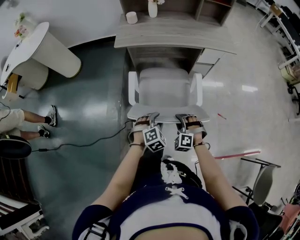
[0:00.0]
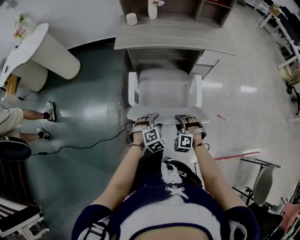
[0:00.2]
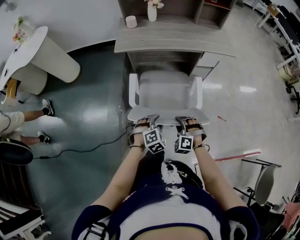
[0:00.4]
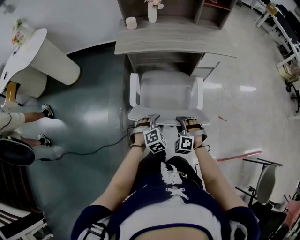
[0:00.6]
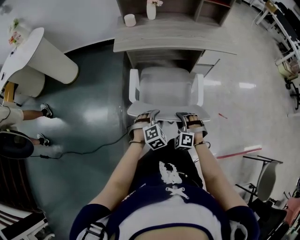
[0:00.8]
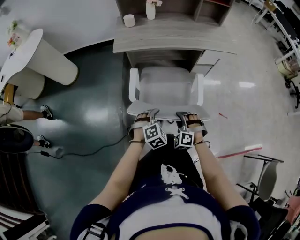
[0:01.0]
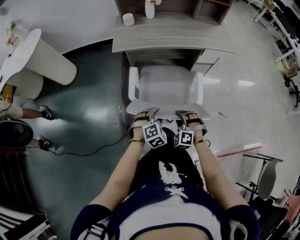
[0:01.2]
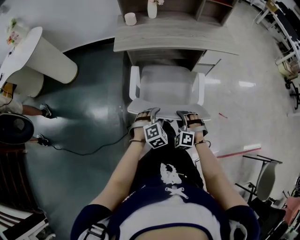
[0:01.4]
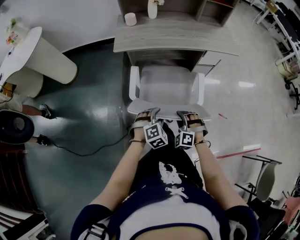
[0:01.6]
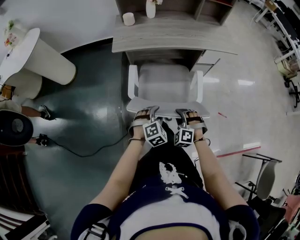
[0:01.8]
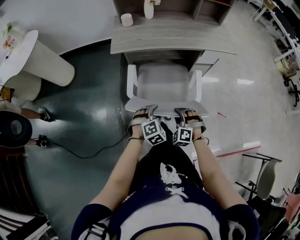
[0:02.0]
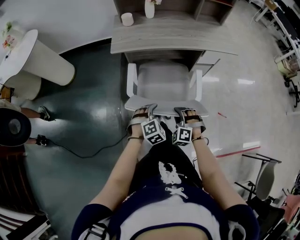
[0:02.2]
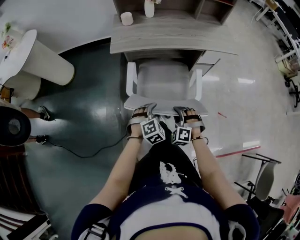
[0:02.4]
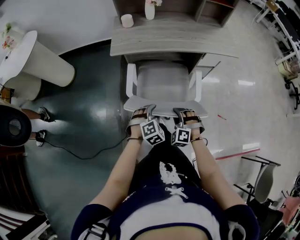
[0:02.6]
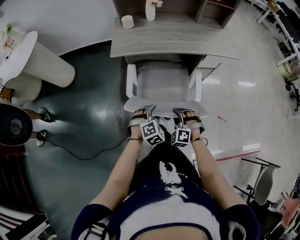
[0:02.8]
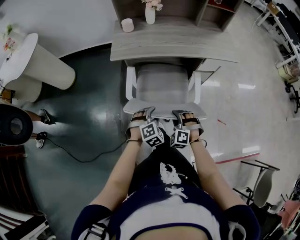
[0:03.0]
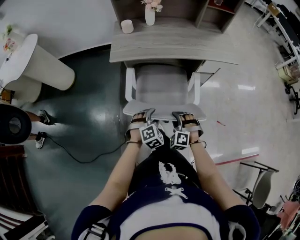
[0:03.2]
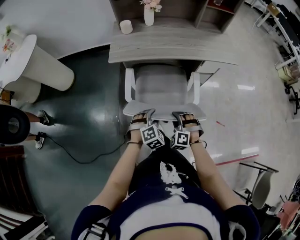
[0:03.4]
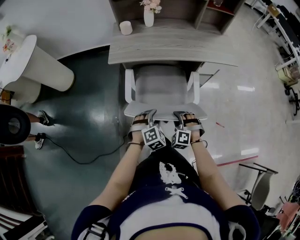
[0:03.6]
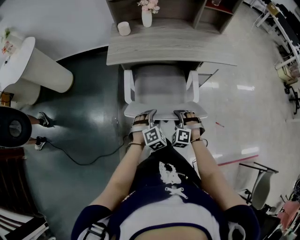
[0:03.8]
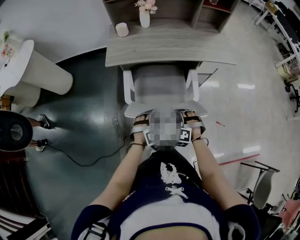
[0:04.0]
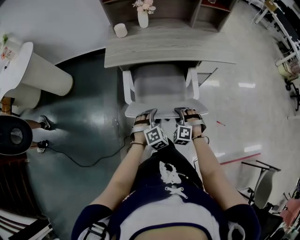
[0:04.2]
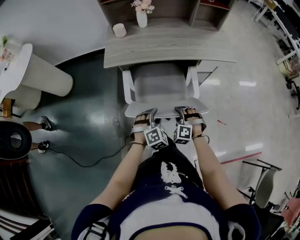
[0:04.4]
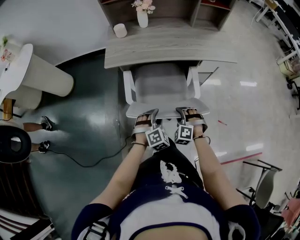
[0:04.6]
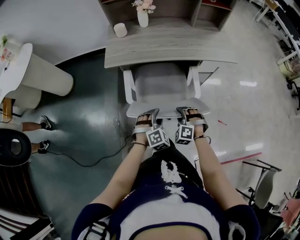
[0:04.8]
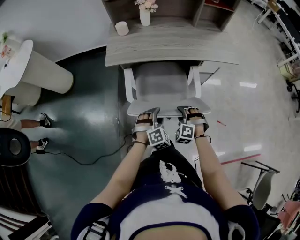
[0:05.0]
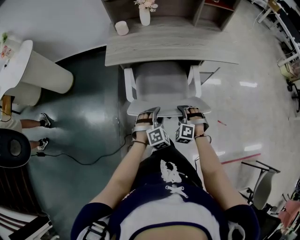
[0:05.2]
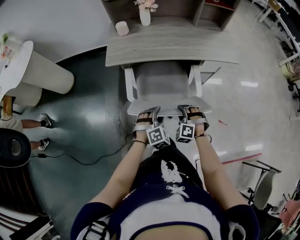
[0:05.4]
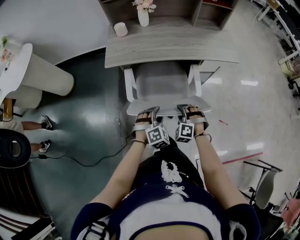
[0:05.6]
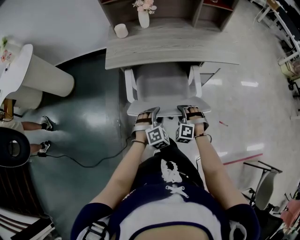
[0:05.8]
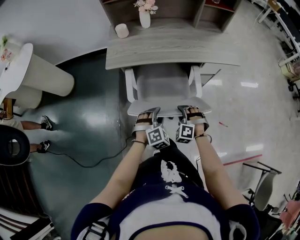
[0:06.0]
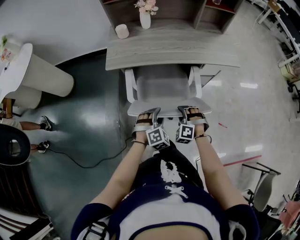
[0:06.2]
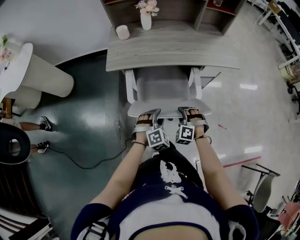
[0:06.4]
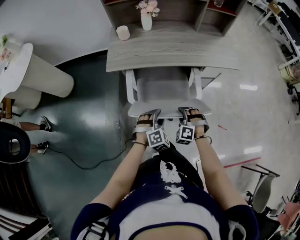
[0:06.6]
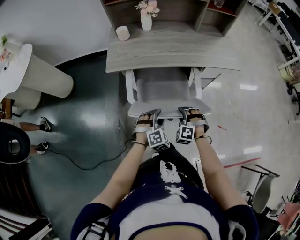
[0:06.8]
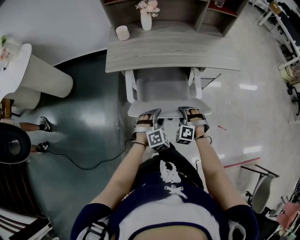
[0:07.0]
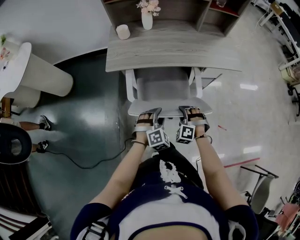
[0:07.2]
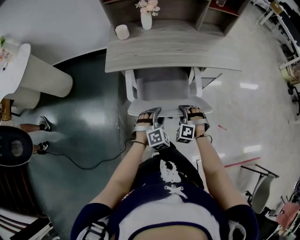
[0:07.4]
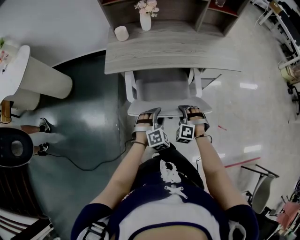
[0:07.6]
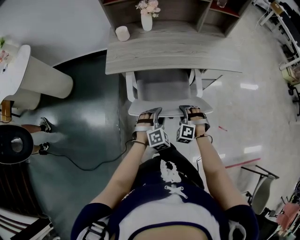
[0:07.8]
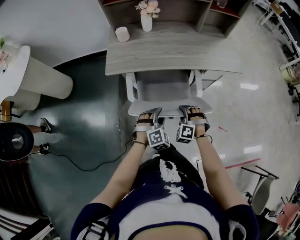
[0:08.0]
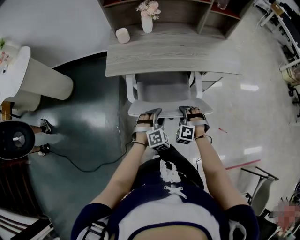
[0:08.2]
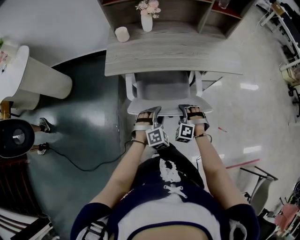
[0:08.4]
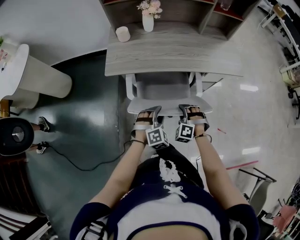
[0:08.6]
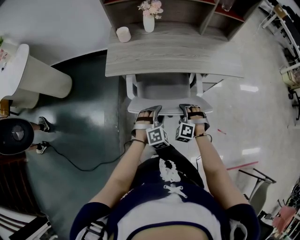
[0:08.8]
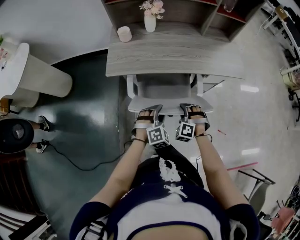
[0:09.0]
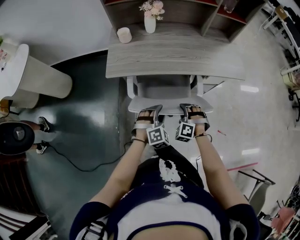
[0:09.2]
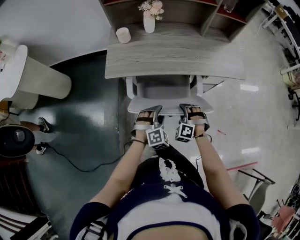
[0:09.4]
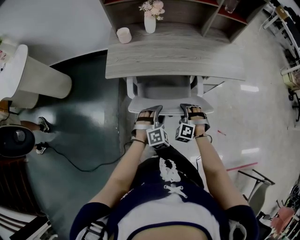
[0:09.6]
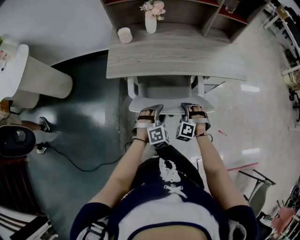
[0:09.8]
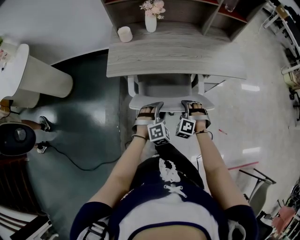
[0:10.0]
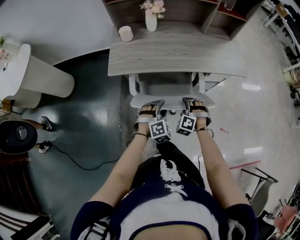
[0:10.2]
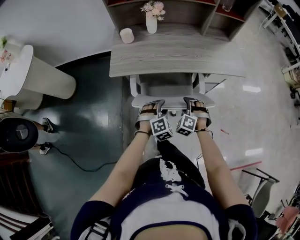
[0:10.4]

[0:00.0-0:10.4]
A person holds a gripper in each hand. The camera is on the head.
0:00.0 to 0:01.4: The grippers both shift forward by about 5 cm.
0:01.4 to 0:03.0: The grippers both shift forward by about 10 cm.
0:03.0 to 0:04.4: The left gripper ends up about 5 cm from where it was. Meanwhile the right gripper is displaced forward by approximately 5 cm.
0:04.4 to 0:06.0: There are only small adjustments of the grippers.
0:06.0 to 0:07.4: The grippers stay close to where they were, moving slightly.
0:07.4 to 0:09.0: Both grippers travel together forward, some 5 cm.
0:09.0 to 0:10.4: The grippers make only small movements.

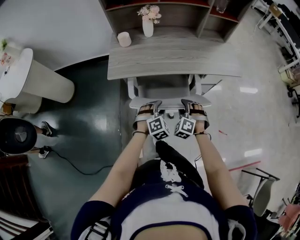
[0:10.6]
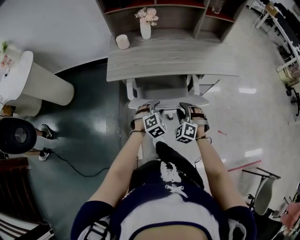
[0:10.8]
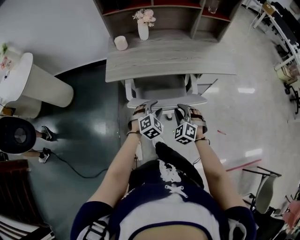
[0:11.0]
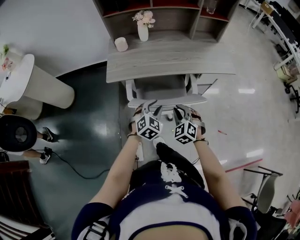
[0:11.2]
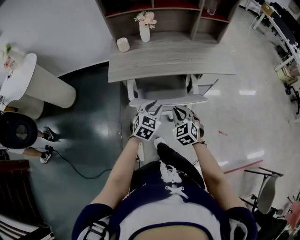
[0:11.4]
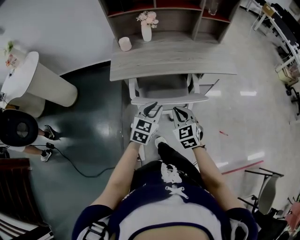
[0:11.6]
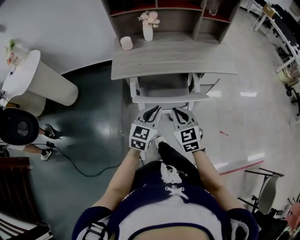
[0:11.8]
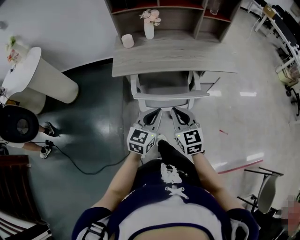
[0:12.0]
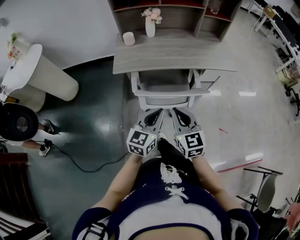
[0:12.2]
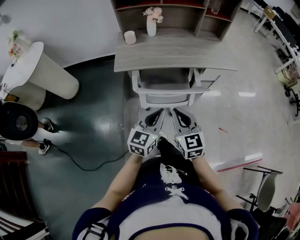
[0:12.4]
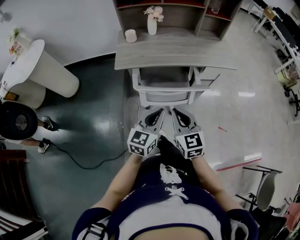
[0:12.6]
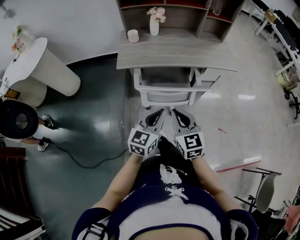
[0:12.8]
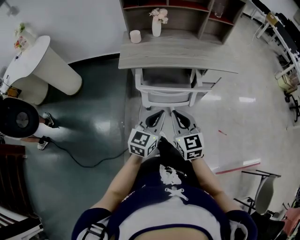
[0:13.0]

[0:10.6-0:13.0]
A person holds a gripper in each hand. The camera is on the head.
0:10.6 to 0:11.8: The grippers both shift upward and backward by roughly 15 cm. The right gripper rotates around the line of its fingers by approximately 50 degrees, clockwise from behind, and closes up; the left gripper rolls counterclockwise, seen from behind, by some 50 degrees, and closes.
0:11.8 to 0:13.0: The two grippers go roughly 10 cm backward.

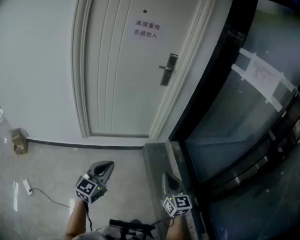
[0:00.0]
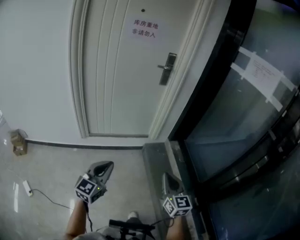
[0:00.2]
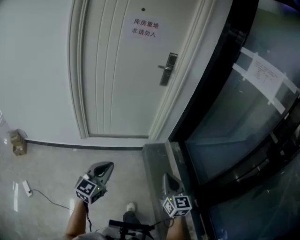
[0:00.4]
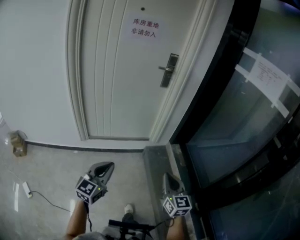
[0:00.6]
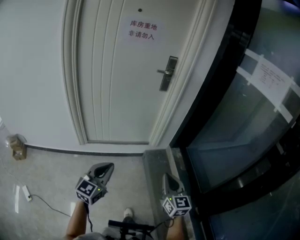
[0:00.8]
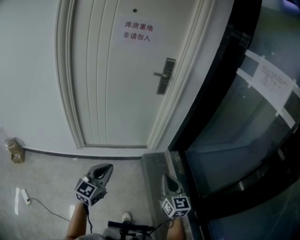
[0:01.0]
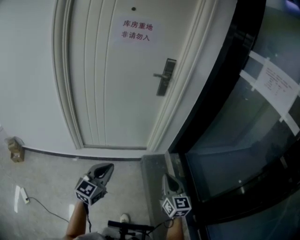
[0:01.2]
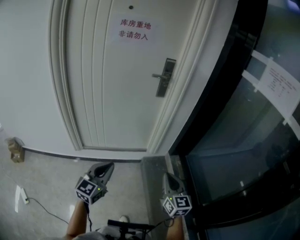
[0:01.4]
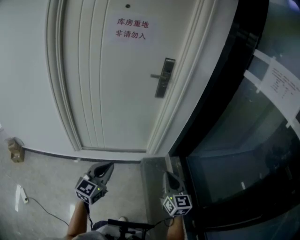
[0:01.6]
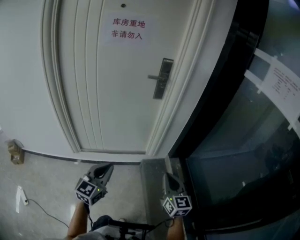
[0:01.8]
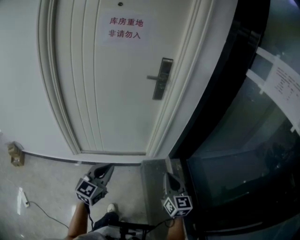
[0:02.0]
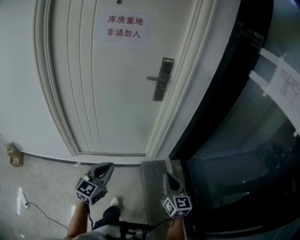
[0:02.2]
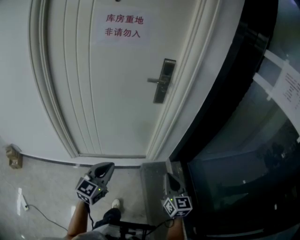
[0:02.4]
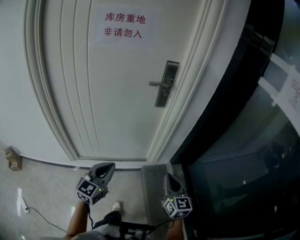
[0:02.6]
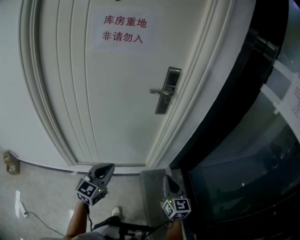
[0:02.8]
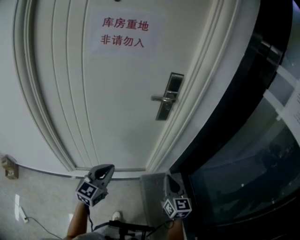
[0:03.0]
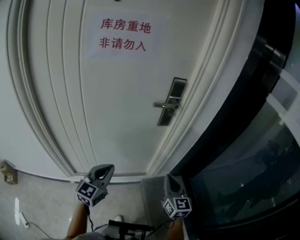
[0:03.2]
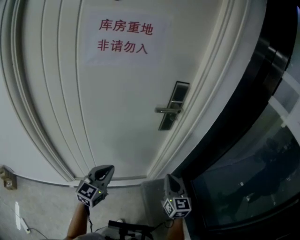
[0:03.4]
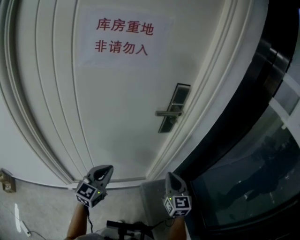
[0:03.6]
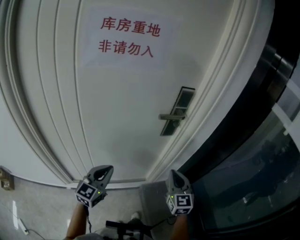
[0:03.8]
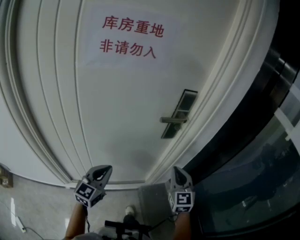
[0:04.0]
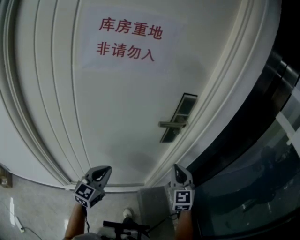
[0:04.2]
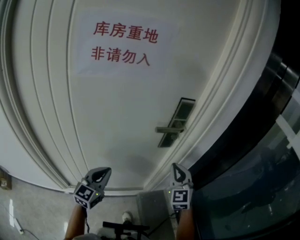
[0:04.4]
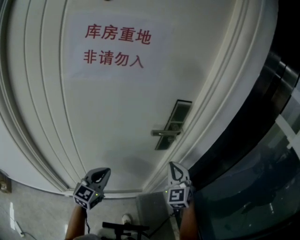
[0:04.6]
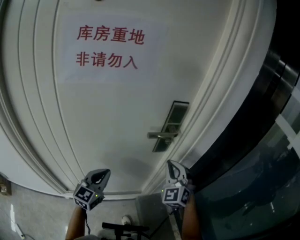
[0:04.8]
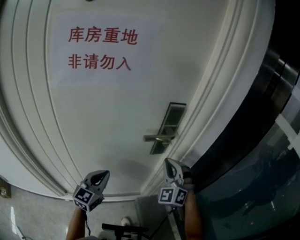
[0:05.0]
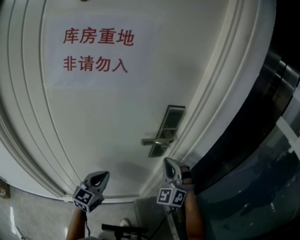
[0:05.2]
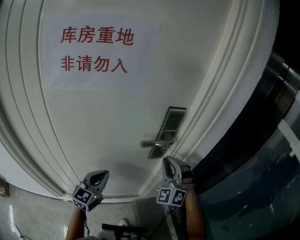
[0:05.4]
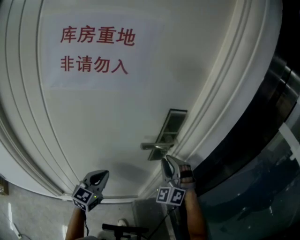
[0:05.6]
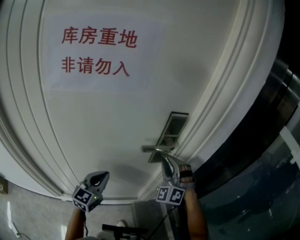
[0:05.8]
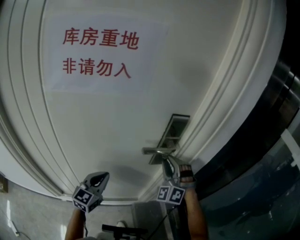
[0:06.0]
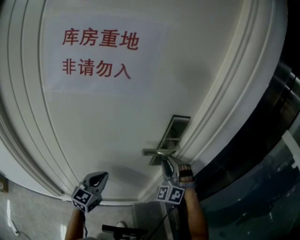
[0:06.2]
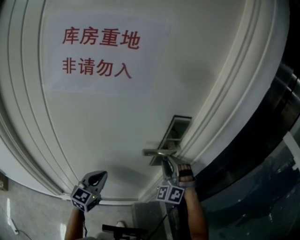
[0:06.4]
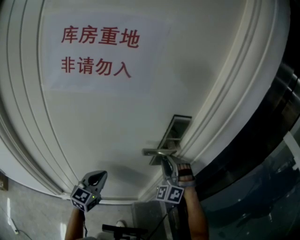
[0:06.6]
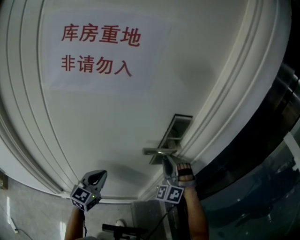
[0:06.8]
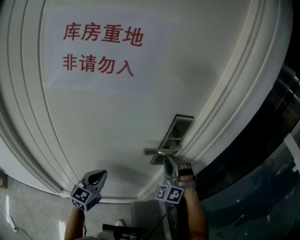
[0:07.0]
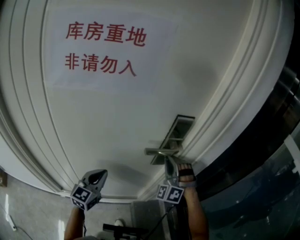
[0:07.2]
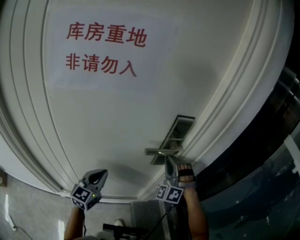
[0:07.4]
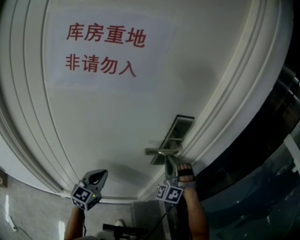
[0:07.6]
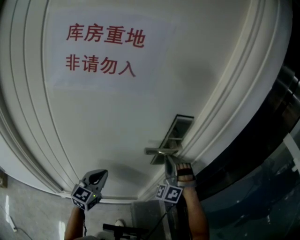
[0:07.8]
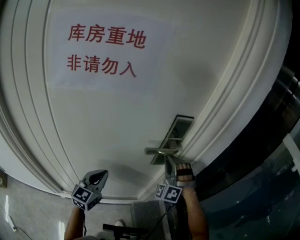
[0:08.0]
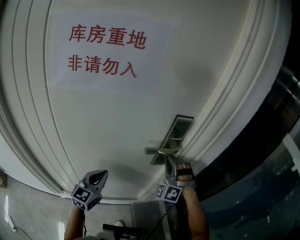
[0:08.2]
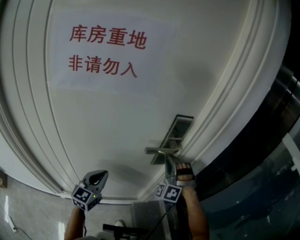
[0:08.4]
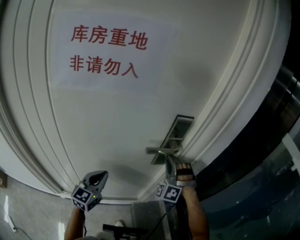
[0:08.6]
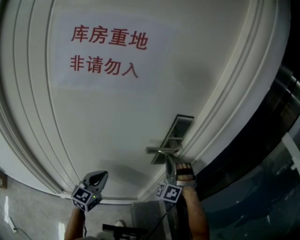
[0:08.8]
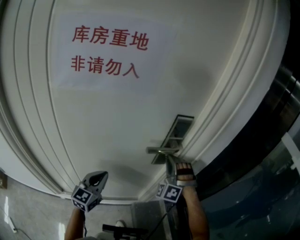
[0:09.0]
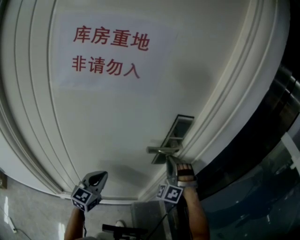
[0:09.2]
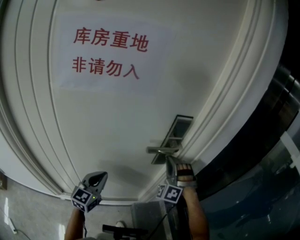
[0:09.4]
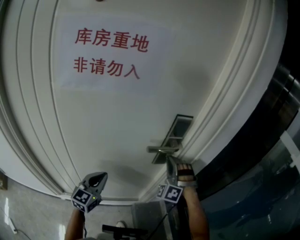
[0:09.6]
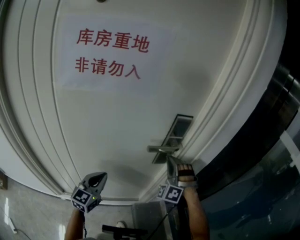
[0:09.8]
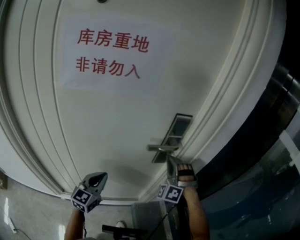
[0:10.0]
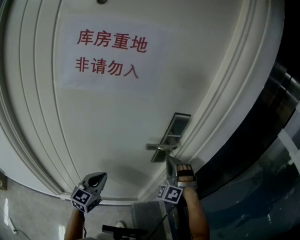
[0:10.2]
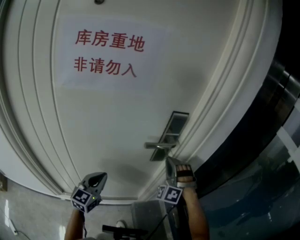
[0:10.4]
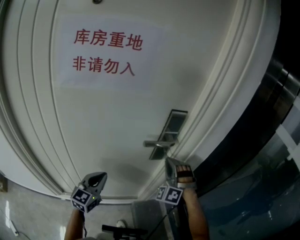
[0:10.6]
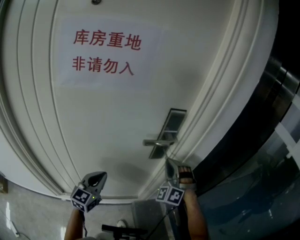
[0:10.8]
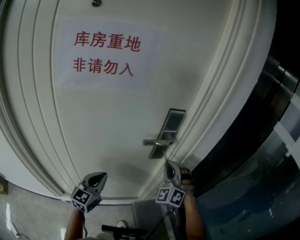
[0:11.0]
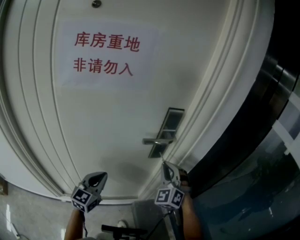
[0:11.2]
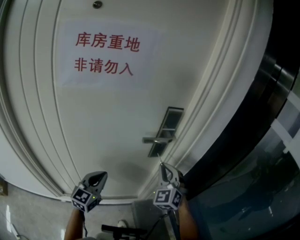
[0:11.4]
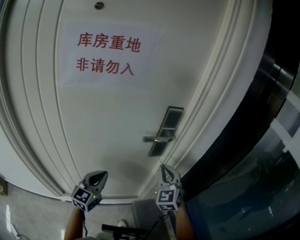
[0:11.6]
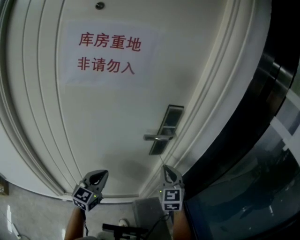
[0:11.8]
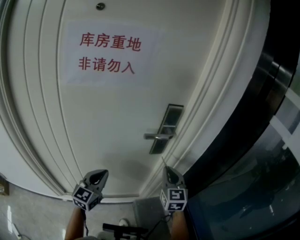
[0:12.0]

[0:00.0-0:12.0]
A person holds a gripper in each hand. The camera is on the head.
0:00.0 to 0:01.6: Both grippers move forward, about 25 cm.
0:01.6 to 0:03.0: The grippers both shift forward by approximately 25 cm.
0:03.0 to 0:04.4: The two grippers go roughly 20 cm forward. The right gripper rotates some 30 degrees.
0:04.4 to 0:06.0: Both grippers travel together forward, about 10 cm. The right gripper twists about 50 degrees counterclockwise, seen from behind, and opens up.
0:06.0 to 0:07.6: The right gripper closes its fingers.
0:07.6 to 0:10.4: The grippers move only a little.
0:10.4 to 0:12.0: The right gripper shifts about 10 cm backward, and rotates around the line of its fingers by roughly 80 degrees, clockwise from behind.
